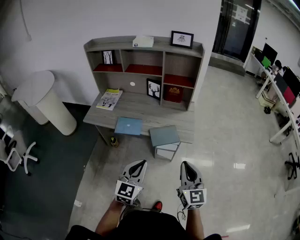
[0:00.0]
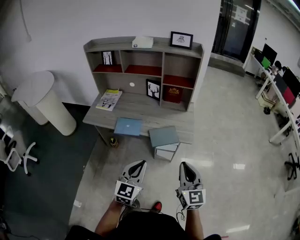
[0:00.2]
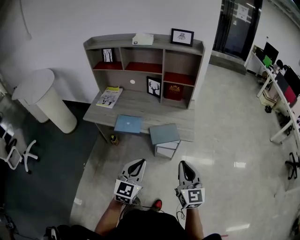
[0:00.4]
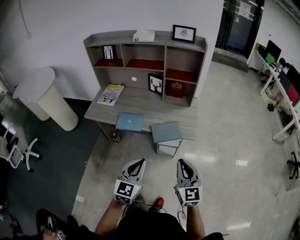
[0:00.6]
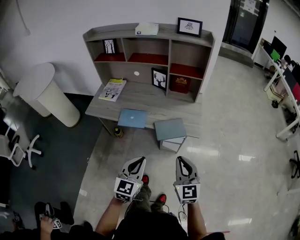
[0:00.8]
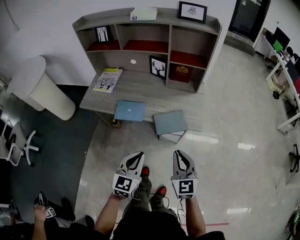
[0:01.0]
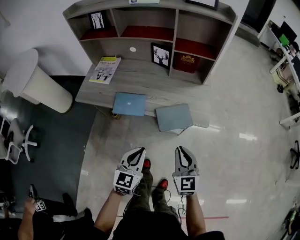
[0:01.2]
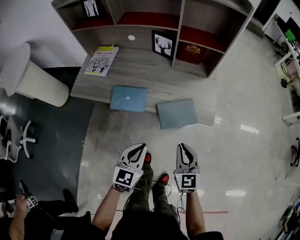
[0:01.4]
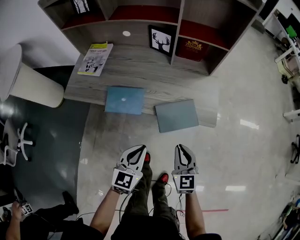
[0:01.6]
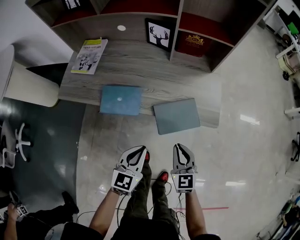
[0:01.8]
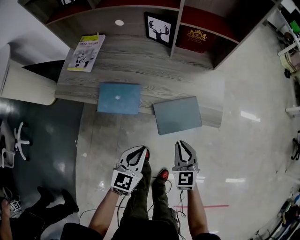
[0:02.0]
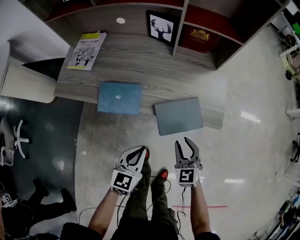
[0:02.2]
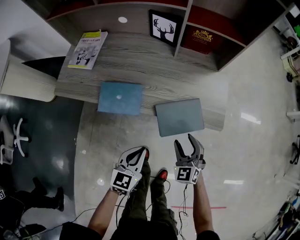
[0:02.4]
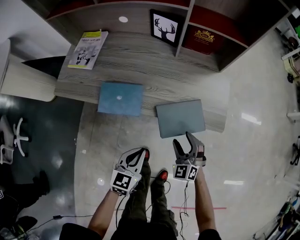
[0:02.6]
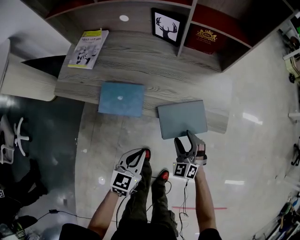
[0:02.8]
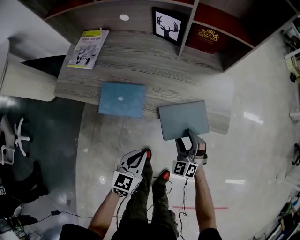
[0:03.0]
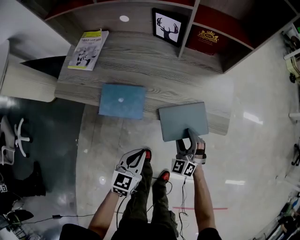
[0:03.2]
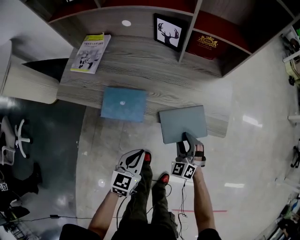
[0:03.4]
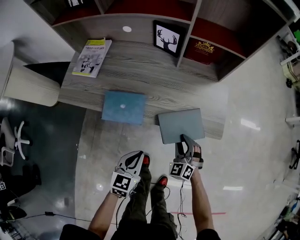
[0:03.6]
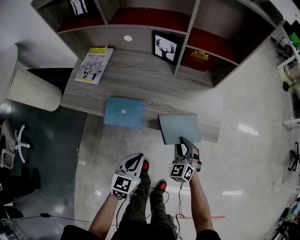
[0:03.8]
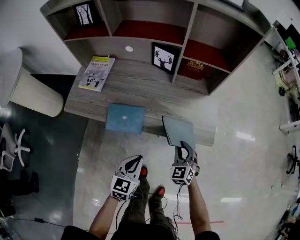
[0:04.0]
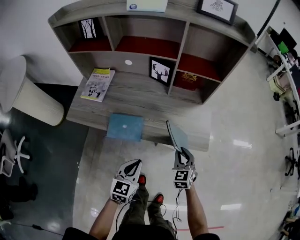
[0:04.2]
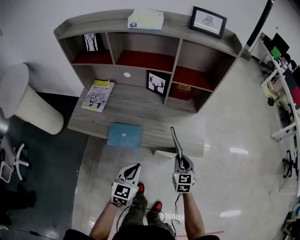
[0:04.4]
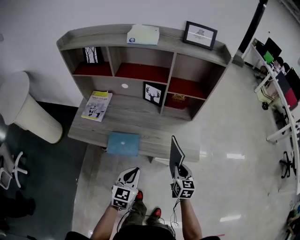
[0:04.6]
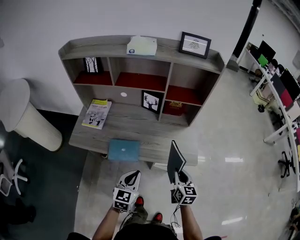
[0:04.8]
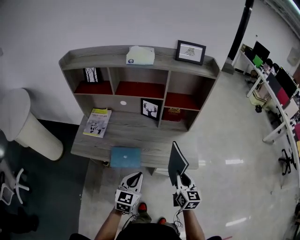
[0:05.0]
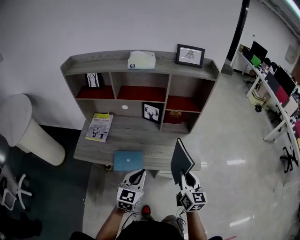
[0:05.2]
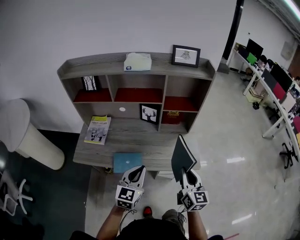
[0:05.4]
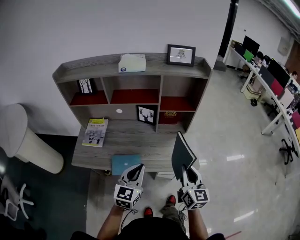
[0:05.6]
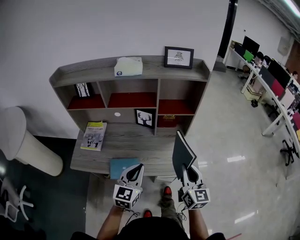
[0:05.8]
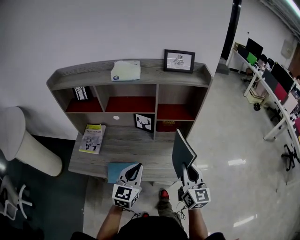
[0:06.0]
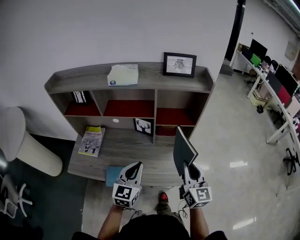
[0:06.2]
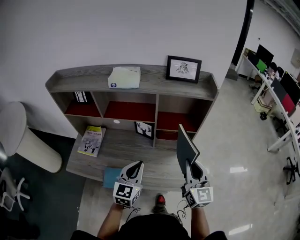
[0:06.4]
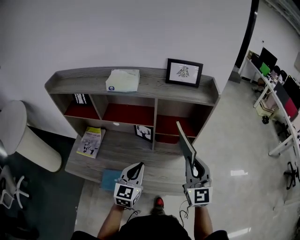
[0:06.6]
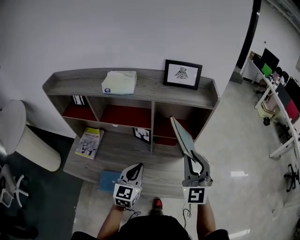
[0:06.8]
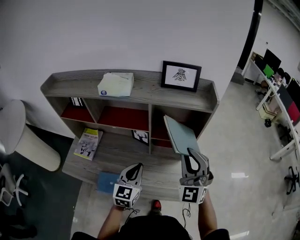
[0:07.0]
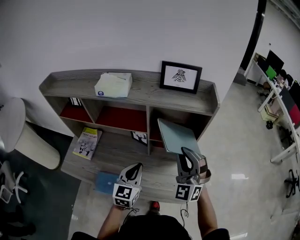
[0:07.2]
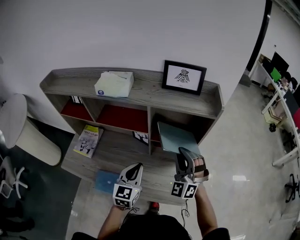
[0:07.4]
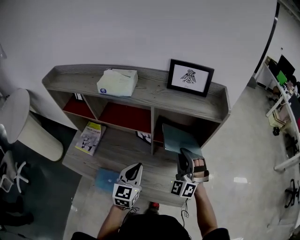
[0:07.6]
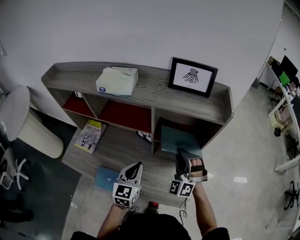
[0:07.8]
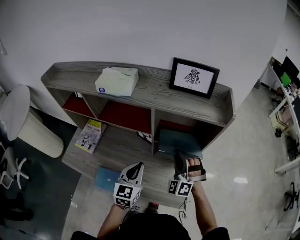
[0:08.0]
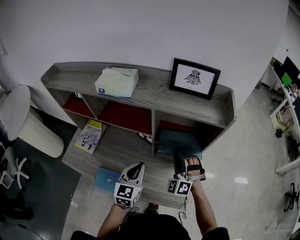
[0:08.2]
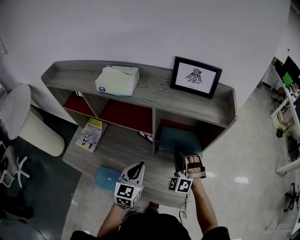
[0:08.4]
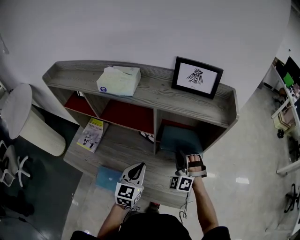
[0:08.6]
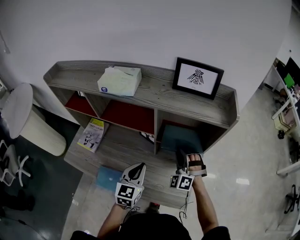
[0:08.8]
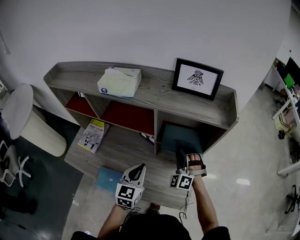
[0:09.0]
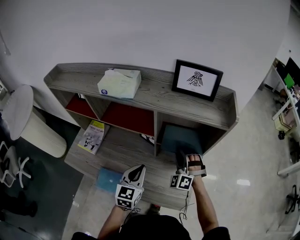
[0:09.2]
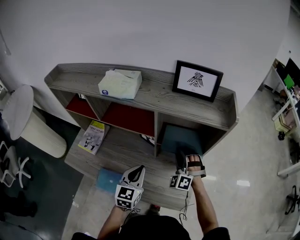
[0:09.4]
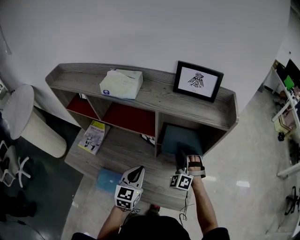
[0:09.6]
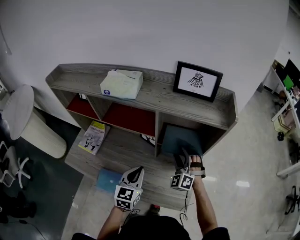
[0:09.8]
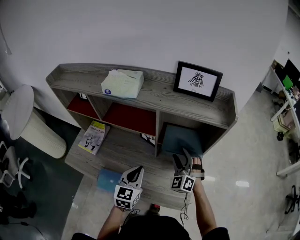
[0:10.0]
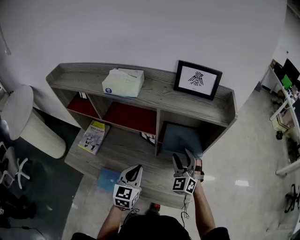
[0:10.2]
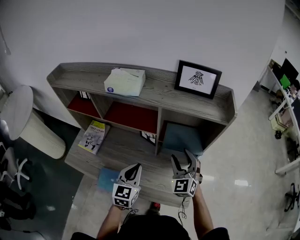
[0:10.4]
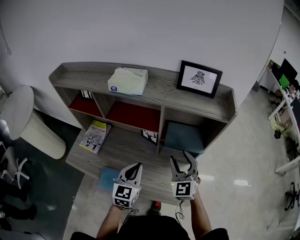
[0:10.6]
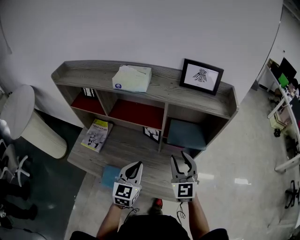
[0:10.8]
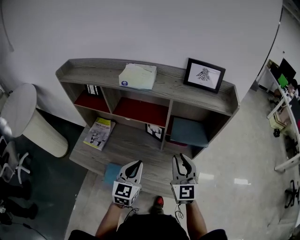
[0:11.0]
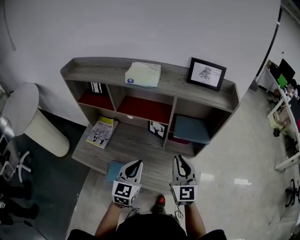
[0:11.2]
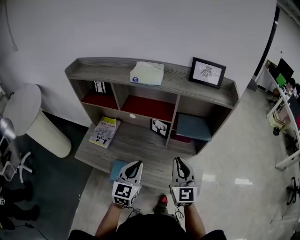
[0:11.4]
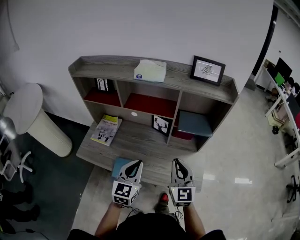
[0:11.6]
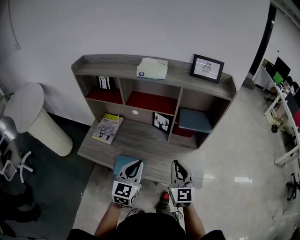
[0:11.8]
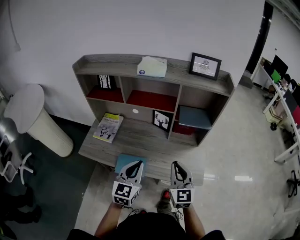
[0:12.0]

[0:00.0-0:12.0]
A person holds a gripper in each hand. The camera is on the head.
0:00.0 to 0:01.6: The two grippers go roughly 25 cm downward and forward. The right gripper turns by some 20 degrees.
0:01.6 to 0:03.0: The right gripper is displaced downward and forward by about 15 cm, twists approximately 40 degrees counterclockwise, seen from behind, and opens. The left gripper moves downward, roughly 10 cm.
0:03.0 to 0:04.4: The two grippers go some 15 cm upward. The right gripper twists about 40 degrees clockwise, seen from behind, and closes up.
0:04.4 to 0:06.0: The left gripper shifts some 20 cm upward and forward; the right gripper shifts about 25 cm upward, and swivels about 30 degrees.
0:06.0 to 0:07.6: The left gripper shifts some 15 cm forward. Meanwhile the right gripper goes roughly 25 cm forward, and rotates around the line of its fingers by roughly 70 degrees, counterclockwise from behind.
0:07.6 to 0:09.0: The right gripper is displaced downward by about 10 cm.
0:09.0 to 0:10.4: The right gripper goes some 5 cm upward, changes its angle by some 40 degrees, and opens its fingers.
0:10.4 to 0:12.0: The two grippers go some 20 cm backward and to the left. The right gripper turns by some 30 degrees, and closes its fingers.

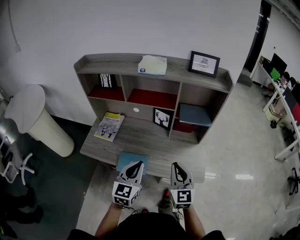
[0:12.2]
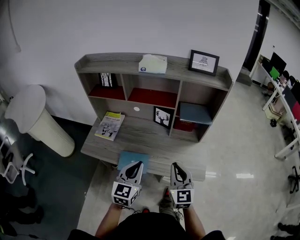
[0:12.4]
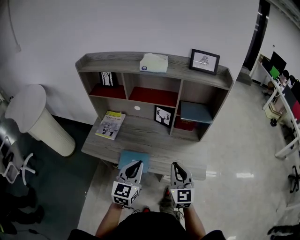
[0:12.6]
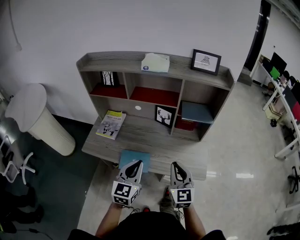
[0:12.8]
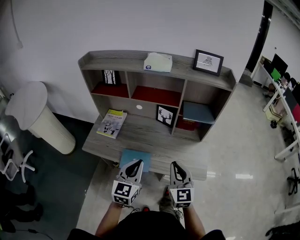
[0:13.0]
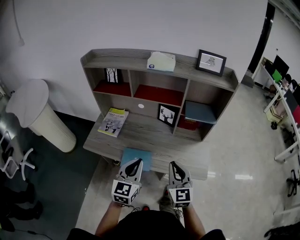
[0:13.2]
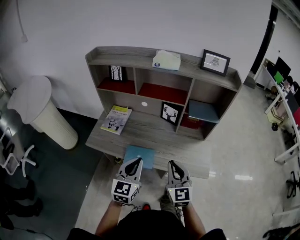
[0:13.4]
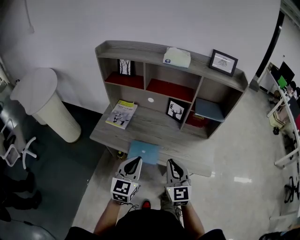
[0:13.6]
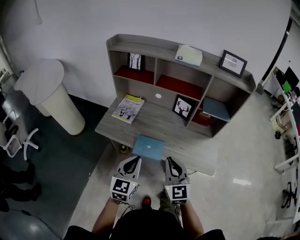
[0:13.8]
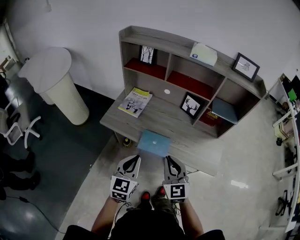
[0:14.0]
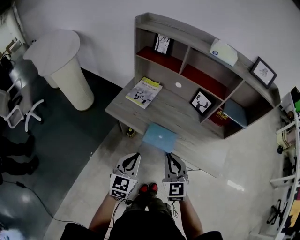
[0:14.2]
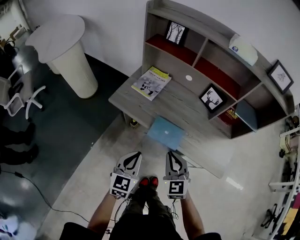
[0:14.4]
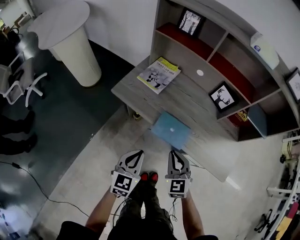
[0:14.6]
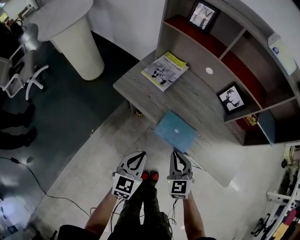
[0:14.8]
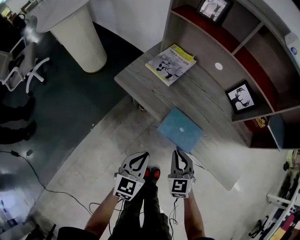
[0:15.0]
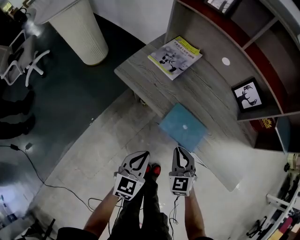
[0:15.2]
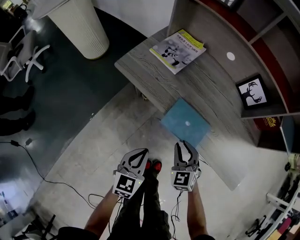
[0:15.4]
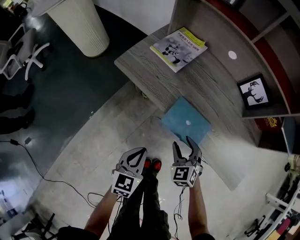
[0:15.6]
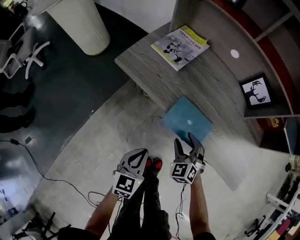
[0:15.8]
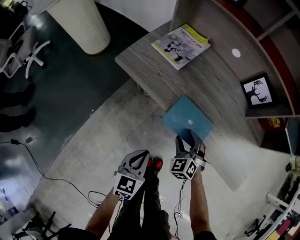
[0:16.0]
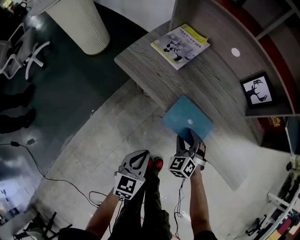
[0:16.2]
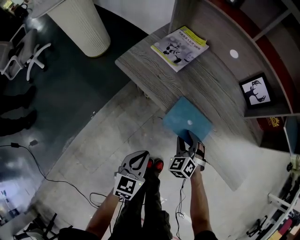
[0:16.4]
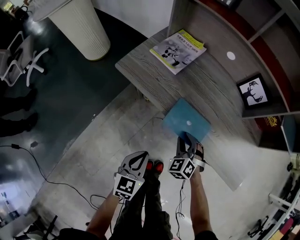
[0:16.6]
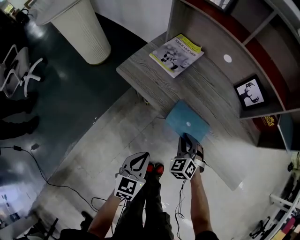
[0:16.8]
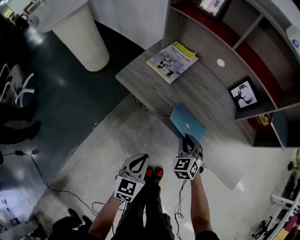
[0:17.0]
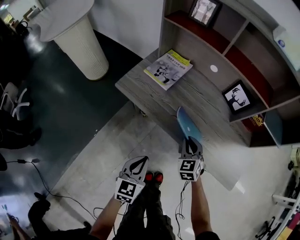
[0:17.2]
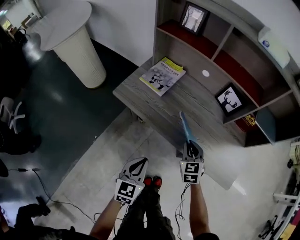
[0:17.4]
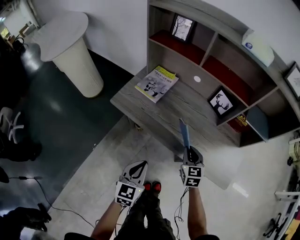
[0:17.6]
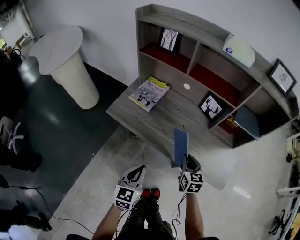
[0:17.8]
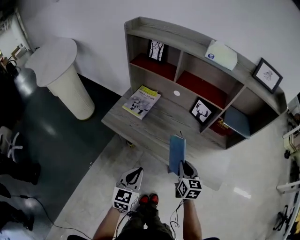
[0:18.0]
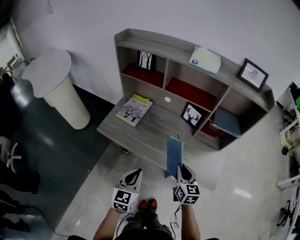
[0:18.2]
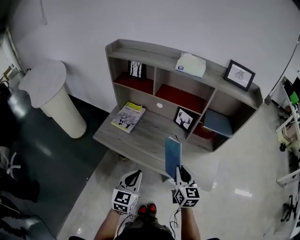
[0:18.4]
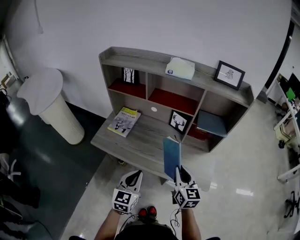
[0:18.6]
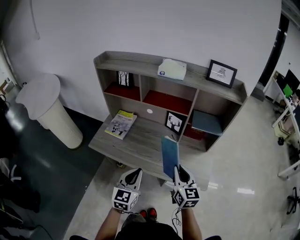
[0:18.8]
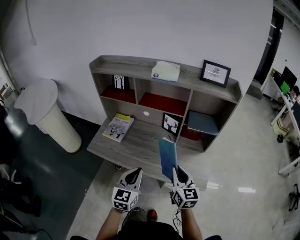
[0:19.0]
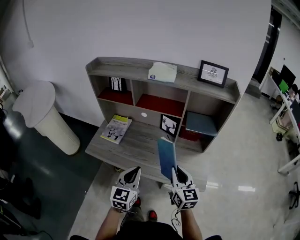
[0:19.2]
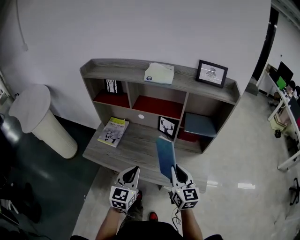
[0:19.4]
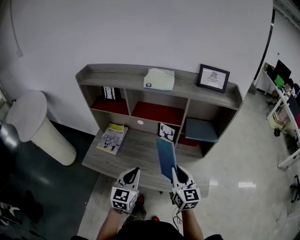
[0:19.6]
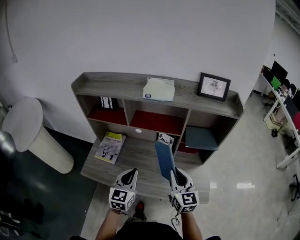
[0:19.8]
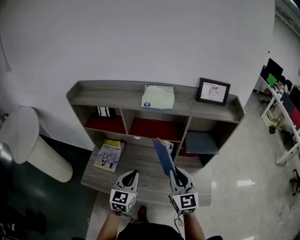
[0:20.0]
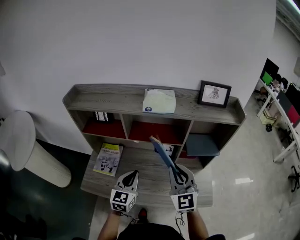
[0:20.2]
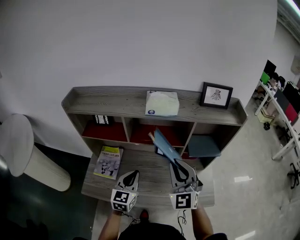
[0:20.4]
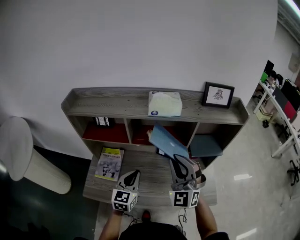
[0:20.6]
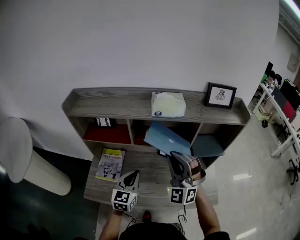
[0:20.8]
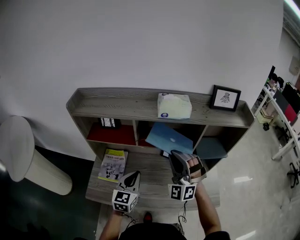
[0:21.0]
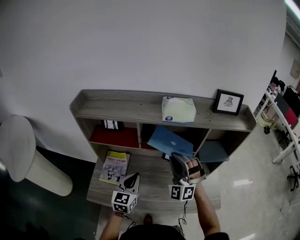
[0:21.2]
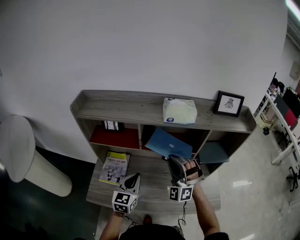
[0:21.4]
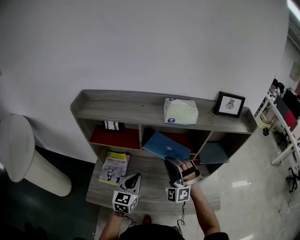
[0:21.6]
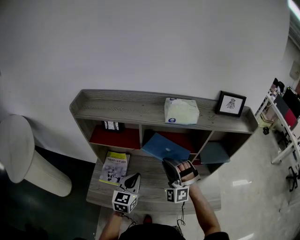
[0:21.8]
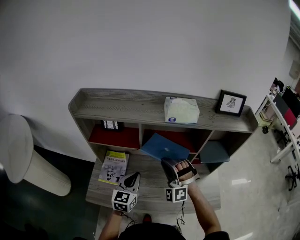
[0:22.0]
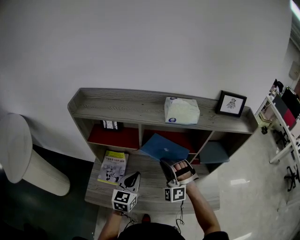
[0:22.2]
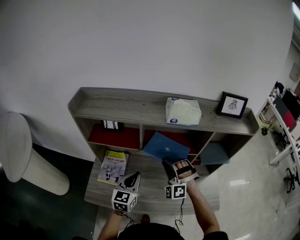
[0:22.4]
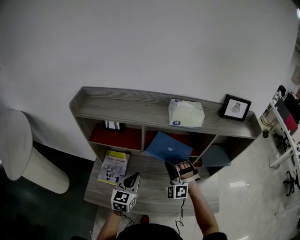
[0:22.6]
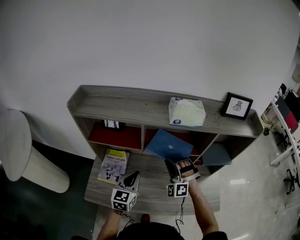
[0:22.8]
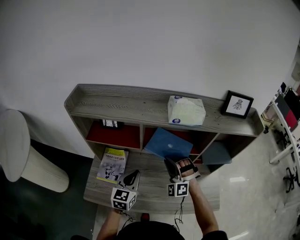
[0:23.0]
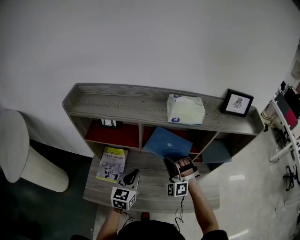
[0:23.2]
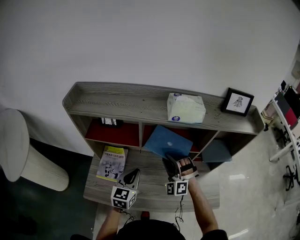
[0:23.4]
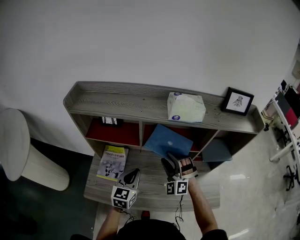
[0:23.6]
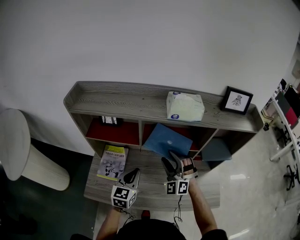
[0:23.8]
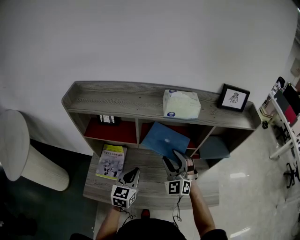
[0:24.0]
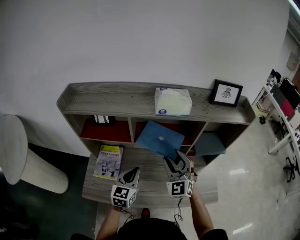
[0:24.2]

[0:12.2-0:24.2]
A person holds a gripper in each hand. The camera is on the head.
0:12.2 to 0:13.8: The two grippers go some 15 cm to the left and backward.
0:13.8 to 0:15.2: The grippers both shift downward by some 25 cm. The left gripper turns by approximately 20 degrees. Meanwhile the right gripper rotates some 30 degrees.
0:15.2 to 0:16.6: The right gripper moves downward, roughly 5 cm, rotates roughly 30 degrees, and opens and closes again.
0:16.6 to 0:18.2: The grippers both shift upward and to the right by roughly 25 cm. The right gripper twists some 60 degrees clockwise, seen from behind.
0:18.2 to 0:19.8: The right gripper shifts approximately 15 cm upward and forward, while the left gripper goes roughly 20 cm forward and upward.
0:19.8 to 0:21.2: The right gripper goes some 20 cm forward, to the left and upward, and rolls counterclockwise, seen from behind, by about 80 degrees; the left gripper shifts roughly 15 cm forward and to the left.
0:21.2 to 0:22.6: The right gripper travels downward by some 10 cm.
0:22.6 to 0:24.2: The right gripper travels to the right and upward by approximately 10 cm, twists roughly 40 degrees clockwise, seen from behind, and opens.
